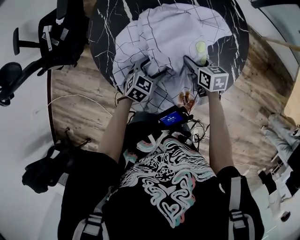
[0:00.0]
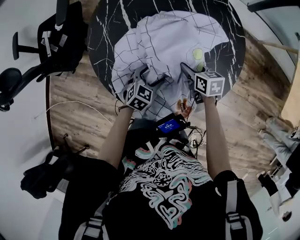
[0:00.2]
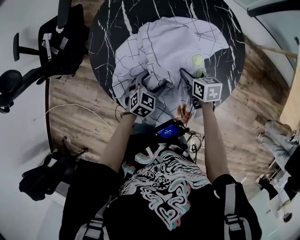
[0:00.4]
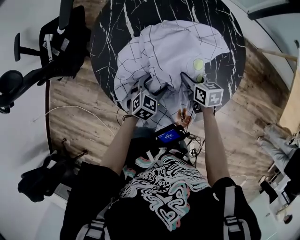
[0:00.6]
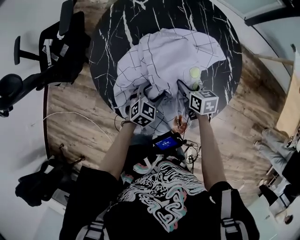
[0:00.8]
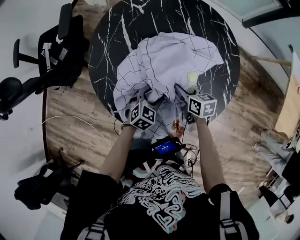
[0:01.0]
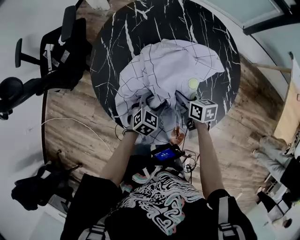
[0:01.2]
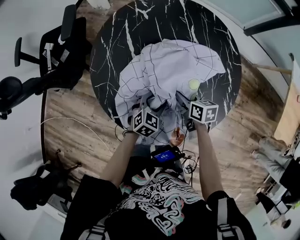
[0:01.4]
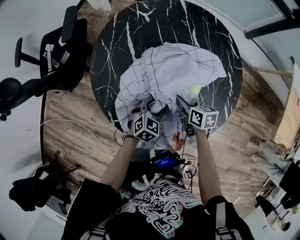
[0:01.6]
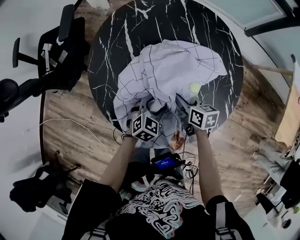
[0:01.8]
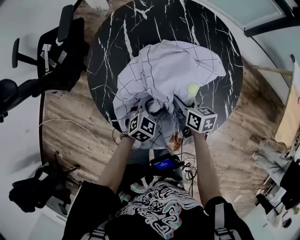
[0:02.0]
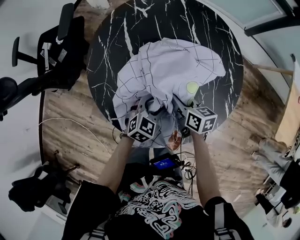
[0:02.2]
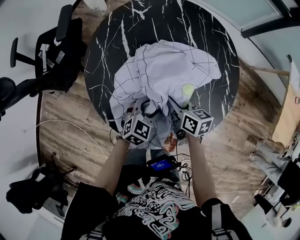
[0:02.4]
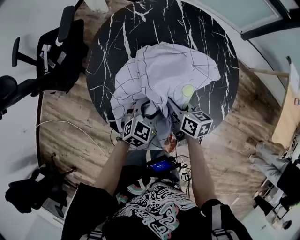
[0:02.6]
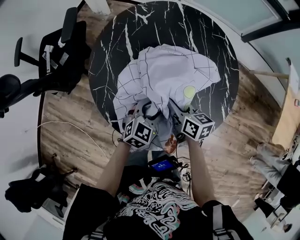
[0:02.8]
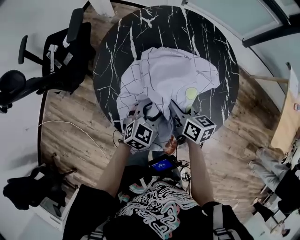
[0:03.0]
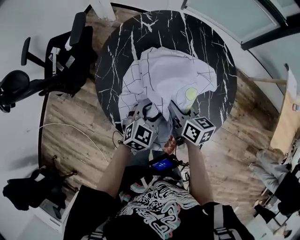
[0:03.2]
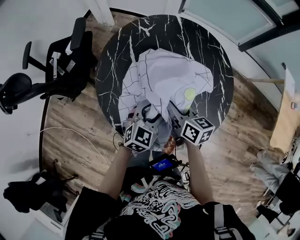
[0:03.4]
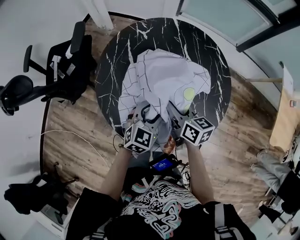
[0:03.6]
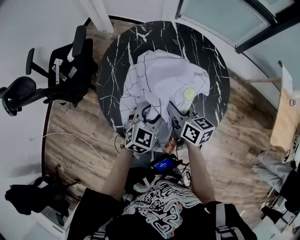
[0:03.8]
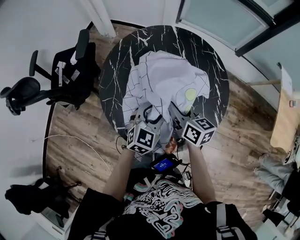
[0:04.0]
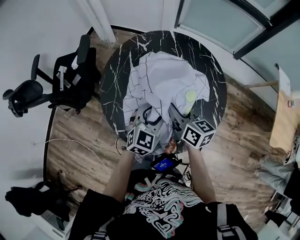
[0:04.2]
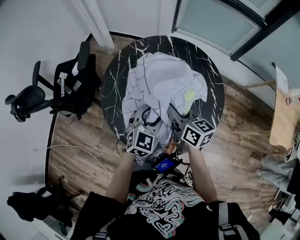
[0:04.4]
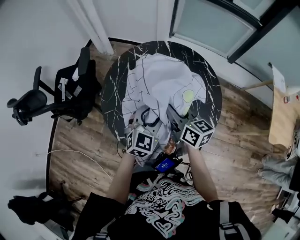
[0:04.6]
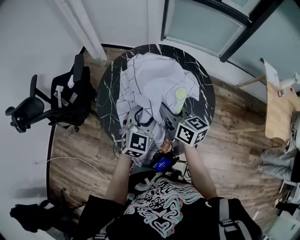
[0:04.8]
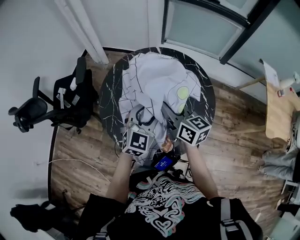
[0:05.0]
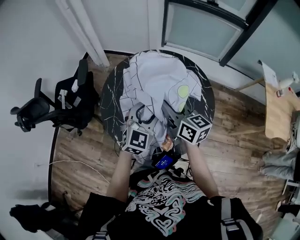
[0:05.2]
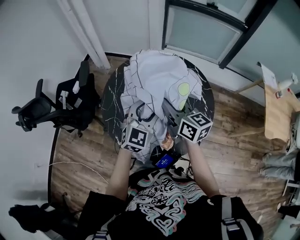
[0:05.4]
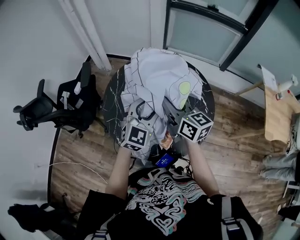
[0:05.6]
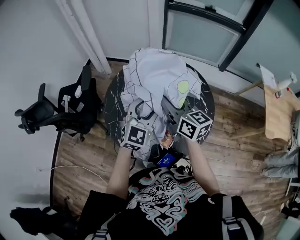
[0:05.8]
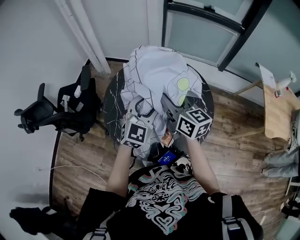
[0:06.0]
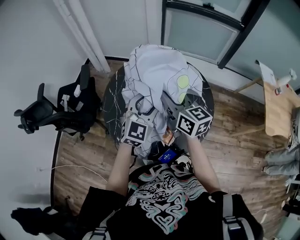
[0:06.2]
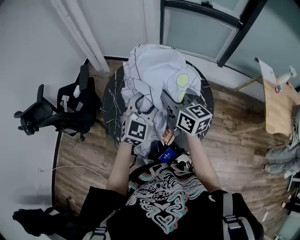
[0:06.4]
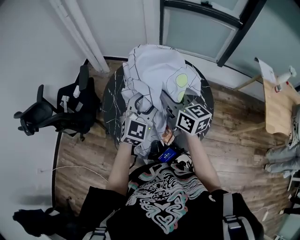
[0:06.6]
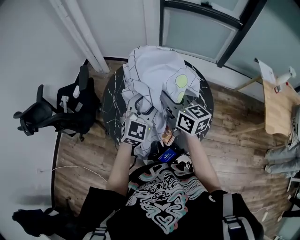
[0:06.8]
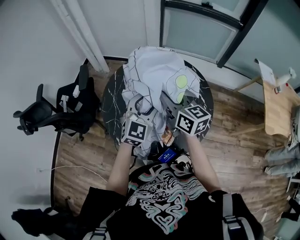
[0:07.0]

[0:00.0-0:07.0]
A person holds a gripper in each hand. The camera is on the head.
0:00.0 to 0:01.4: The grippers stay close to where they were, moving slightly.
0:01.4 to 0:02.8: The grippers both shift upward by roughly 5 cm.
0:02.8 to 0:04.2: Both grippers travel together upward, some 15 cm.
0:04.2 to 0:05.6: Both grippers travel together upward, some 15 cm.
0:05.6 to 0:07.0: The grippers move only a little.

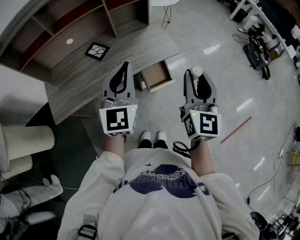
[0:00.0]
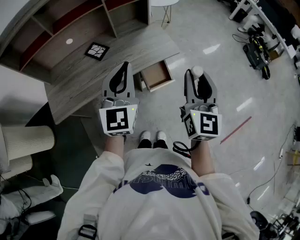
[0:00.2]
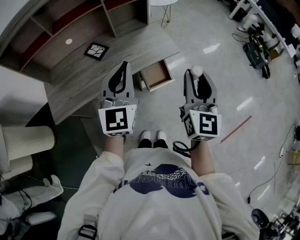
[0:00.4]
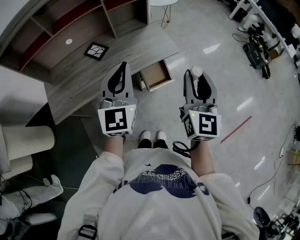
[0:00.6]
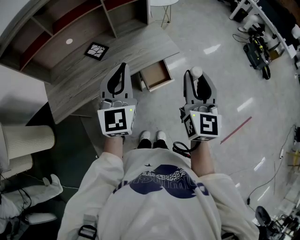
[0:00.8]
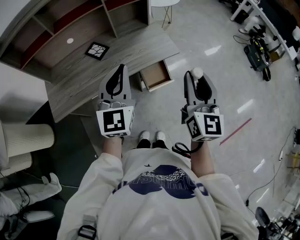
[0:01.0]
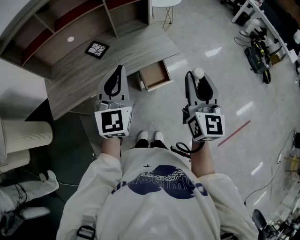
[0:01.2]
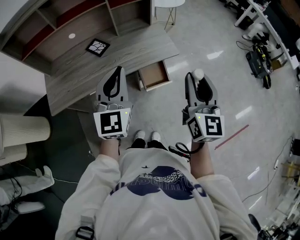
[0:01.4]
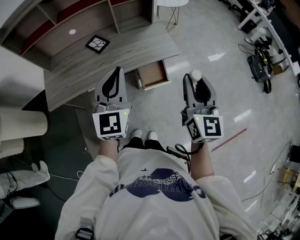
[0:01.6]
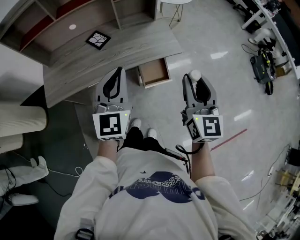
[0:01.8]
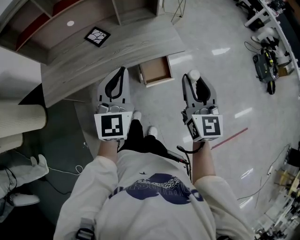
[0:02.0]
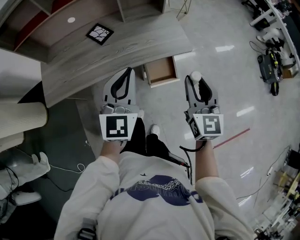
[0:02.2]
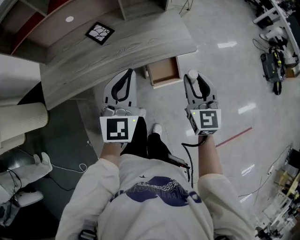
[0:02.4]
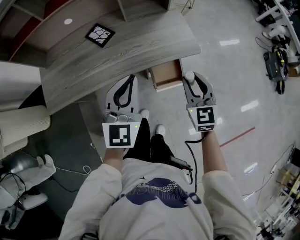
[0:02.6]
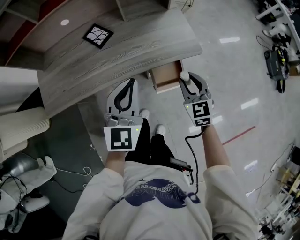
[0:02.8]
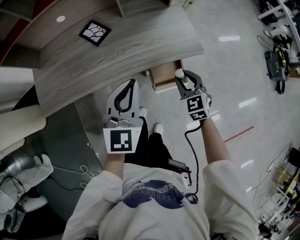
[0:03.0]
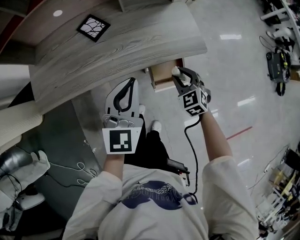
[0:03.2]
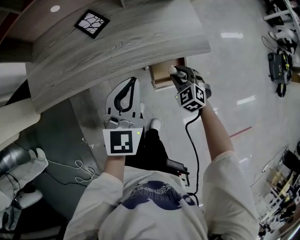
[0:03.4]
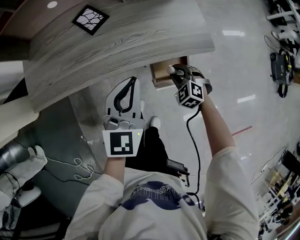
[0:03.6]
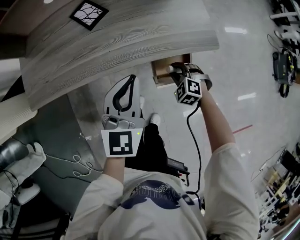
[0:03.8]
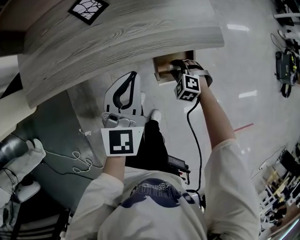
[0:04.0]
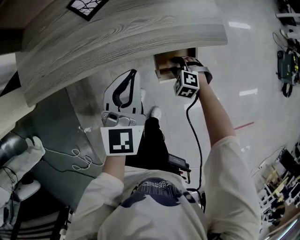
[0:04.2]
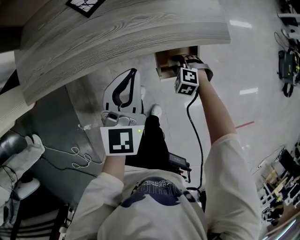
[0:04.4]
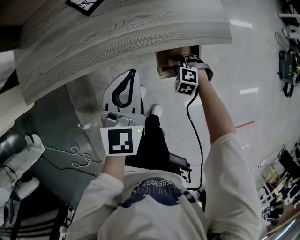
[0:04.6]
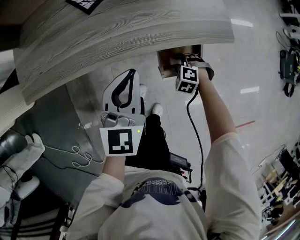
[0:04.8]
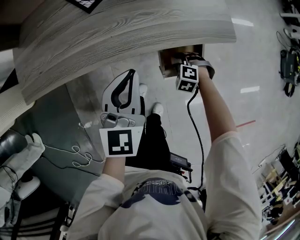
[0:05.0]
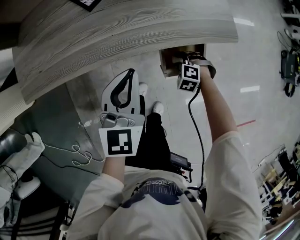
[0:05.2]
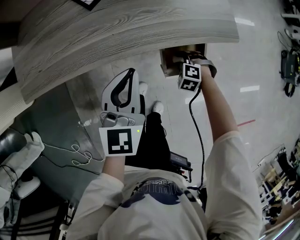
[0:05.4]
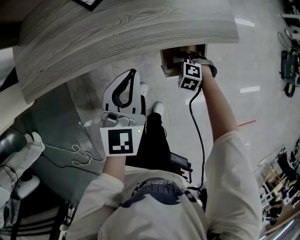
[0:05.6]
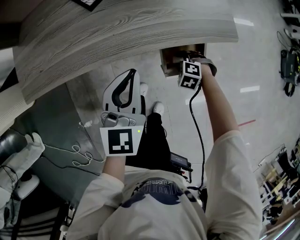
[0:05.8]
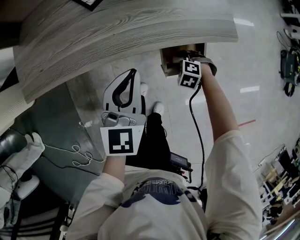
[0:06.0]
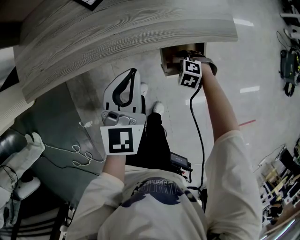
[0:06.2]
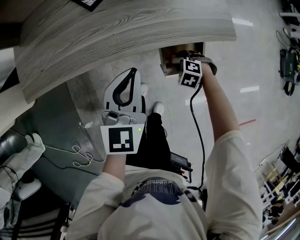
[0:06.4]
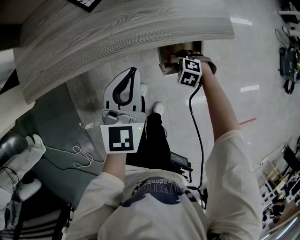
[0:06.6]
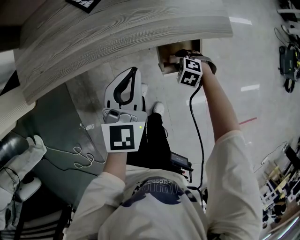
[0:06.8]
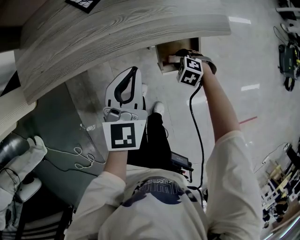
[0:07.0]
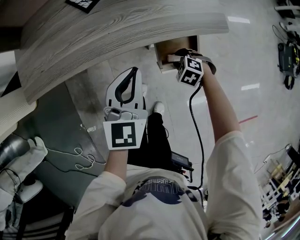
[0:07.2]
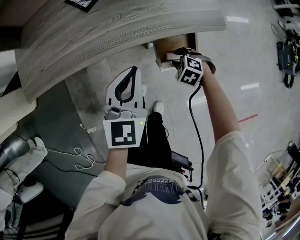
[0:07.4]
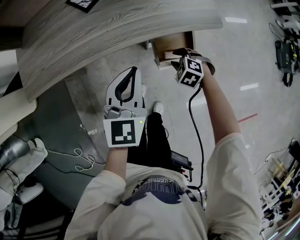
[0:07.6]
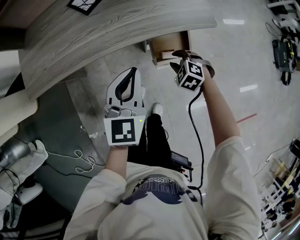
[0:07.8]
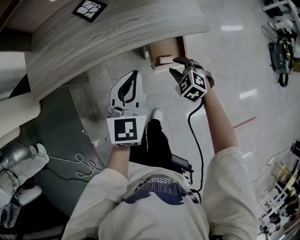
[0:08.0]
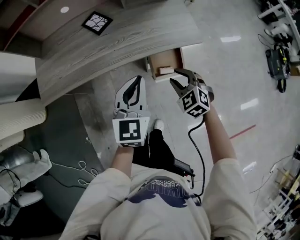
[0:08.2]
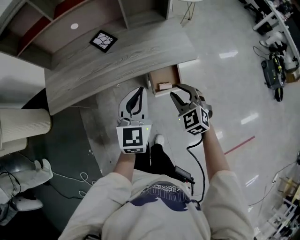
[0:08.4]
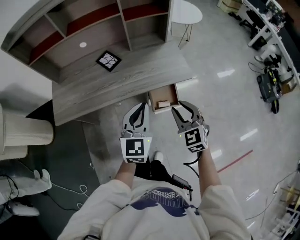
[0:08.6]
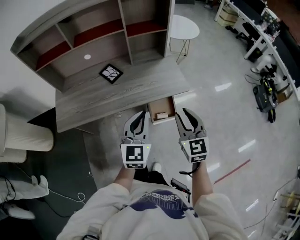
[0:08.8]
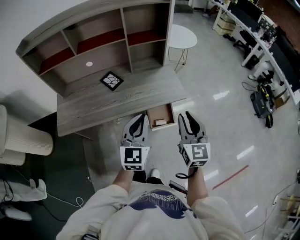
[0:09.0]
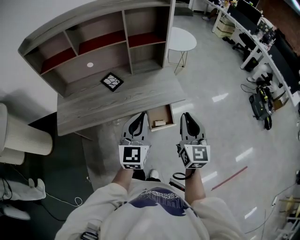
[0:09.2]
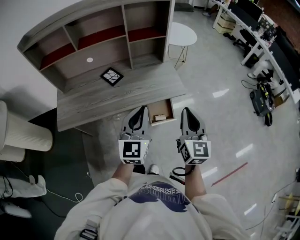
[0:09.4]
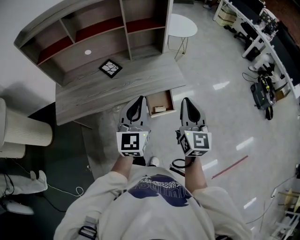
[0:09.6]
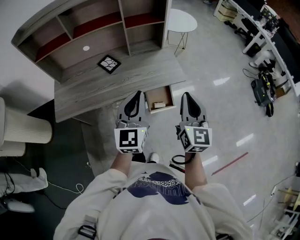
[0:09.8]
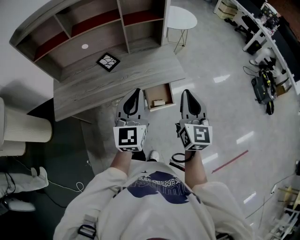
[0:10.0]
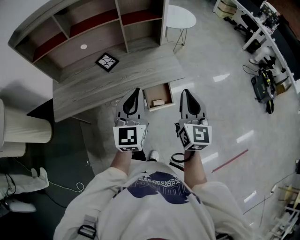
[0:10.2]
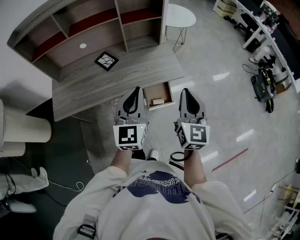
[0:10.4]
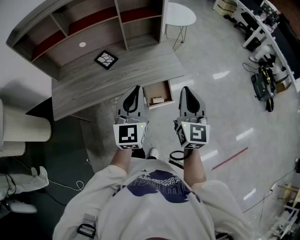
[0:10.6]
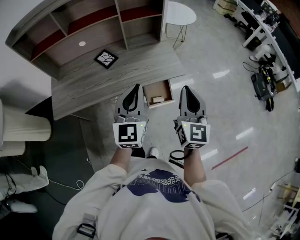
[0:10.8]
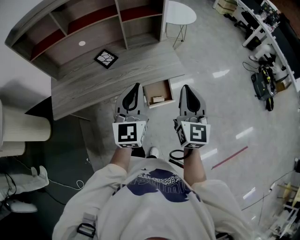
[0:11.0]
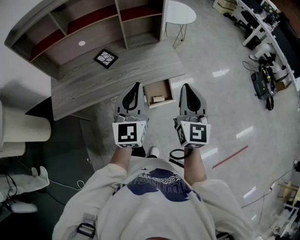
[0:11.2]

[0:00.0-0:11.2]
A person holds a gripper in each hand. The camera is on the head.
0:00.0 to 0:01.6: The grippers make only small movements.
0:01.6 to 0:03.2: The left gripper shifts roughly 20 cm downward and forward. The right gripper is displaced downward and forward by some 40 cm, and points its fingers about 40 degrees further downward.
0:03.2 to 0:04.8: The right gripper moves downward, roughly 20 cm, and tilts its fingers about 30 degrees downward. Meanwhile the left gripper goes some 10 cm downward.
0:04.8 to 0:06.4: The grippers make only small movements.
0:06.4 to 0:08.0: The right gripper shifts approximately 15 cm upward, and swivels some 30 degrees. The left gripper moves some 10 cm.
0:08.0 to 0:09.6: The right gripper moves upward, roughly 40 cm, angles its fingers upward, by some 50 degrees, and closes up, while the left gripper shifts about 20 cm upward.
0:09.6 to 0:11.2: The grippers make only small movements.

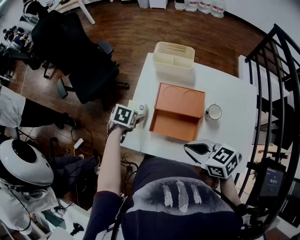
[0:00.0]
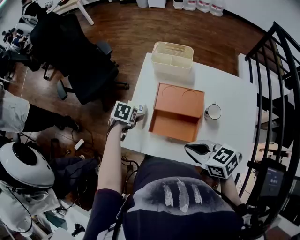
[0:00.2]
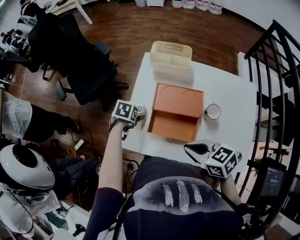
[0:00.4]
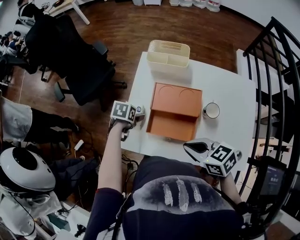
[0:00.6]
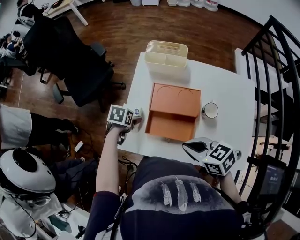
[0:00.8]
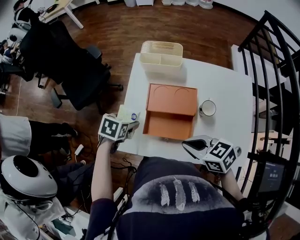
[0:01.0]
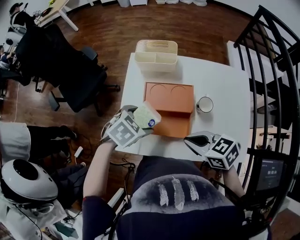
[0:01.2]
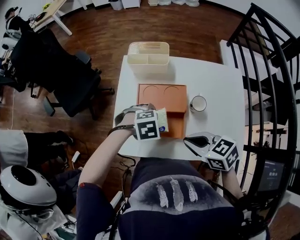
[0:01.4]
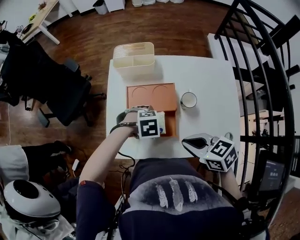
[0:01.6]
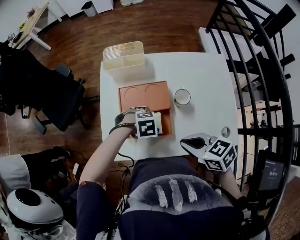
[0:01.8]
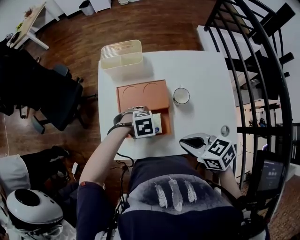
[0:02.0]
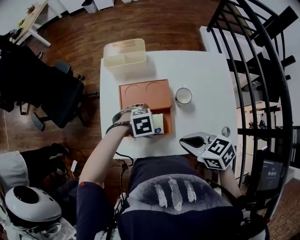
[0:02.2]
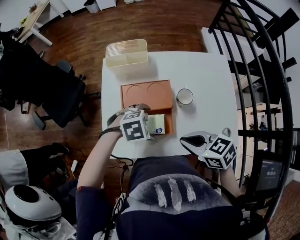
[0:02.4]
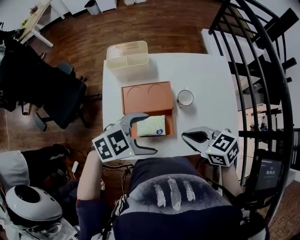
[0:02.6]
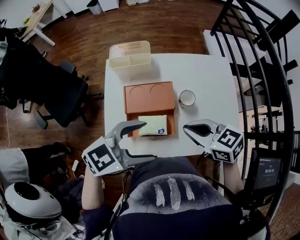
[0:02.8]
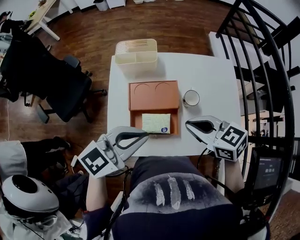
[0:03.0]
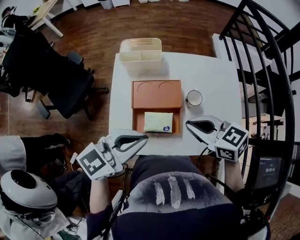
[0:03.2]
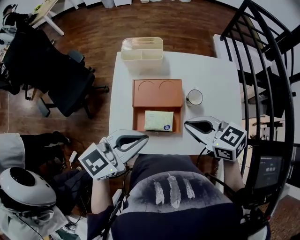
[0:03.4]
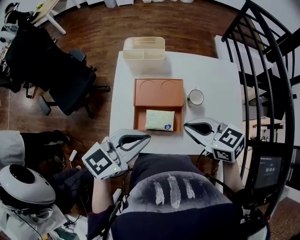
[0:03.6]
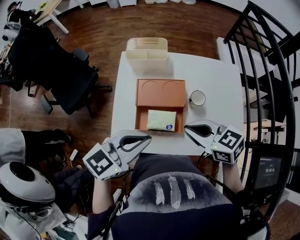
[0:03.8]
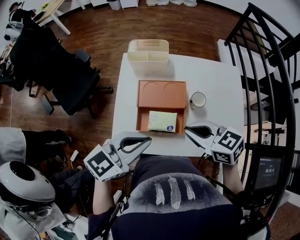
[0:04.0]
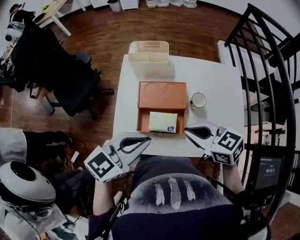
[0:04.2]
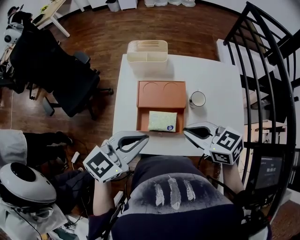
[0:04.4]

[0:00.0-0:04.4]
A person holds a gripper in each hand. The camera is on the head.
0:00.0 to 0:01.4: The left gripper moves up and down over some 15 cm, changing direction 2 times, and rotates around the line of its fingers by approximately 70 degrees, clockwise from behind. Meanwhile the right gripper changes place by approximately 5 cm.
0:01.4 to 0:03.0: The left gripper travels upward by approximately 20 cm, angles its fingers upward, by approximately 60 degrees, and closes up. Meanwhile the right gripper moves roughly 5 cm.
0:03.0 to 0:04.4: The grippers stay close to where they were, moving slightly.

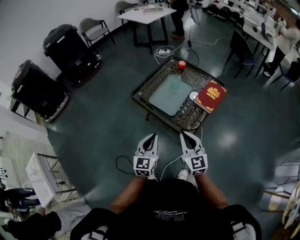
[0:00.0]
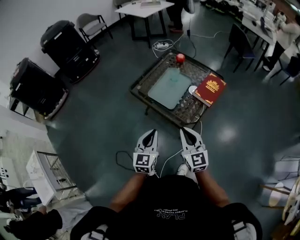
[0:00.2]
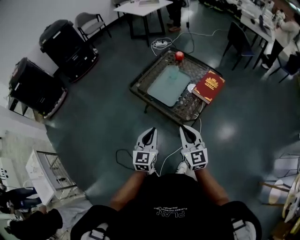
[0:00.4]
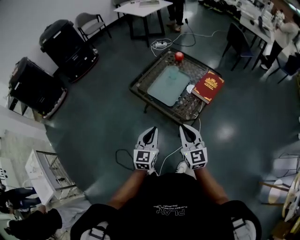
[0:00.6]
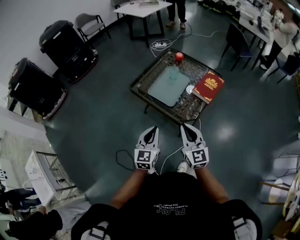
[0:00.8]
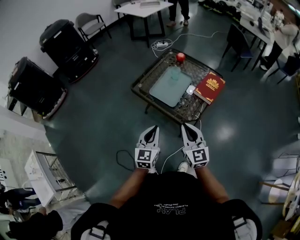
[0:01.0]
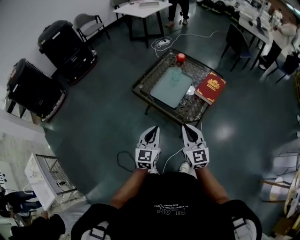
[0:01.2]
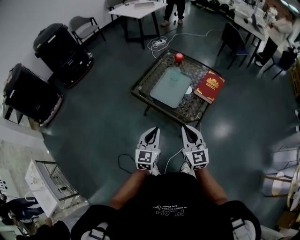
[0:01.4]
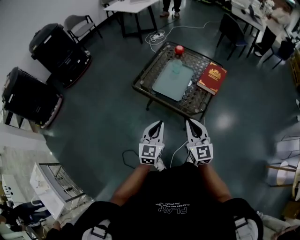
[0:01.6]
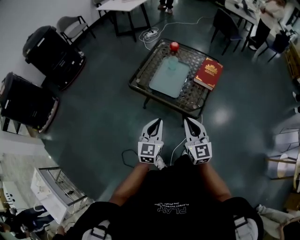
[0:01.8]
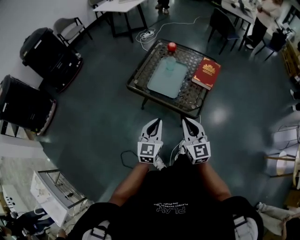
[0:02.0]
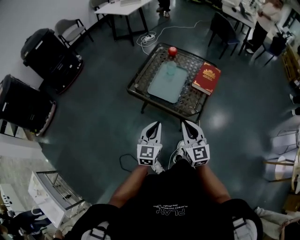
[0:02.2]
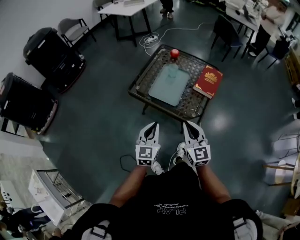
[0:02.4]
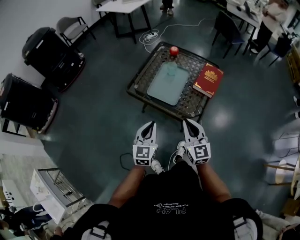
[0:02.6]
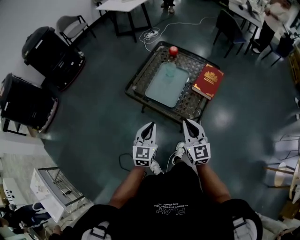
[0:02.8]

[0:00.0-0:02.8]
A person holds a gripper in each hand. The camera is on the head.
0:00.0 to 0:01.4: The grippers make only small movements.
0:01.4 to 0:02.8: The two grippers go roughly 5 cm forward.
